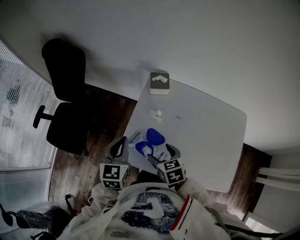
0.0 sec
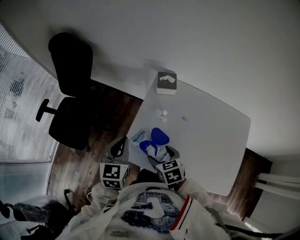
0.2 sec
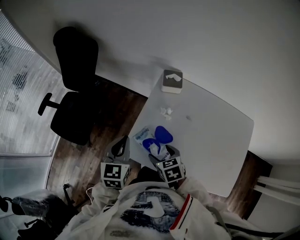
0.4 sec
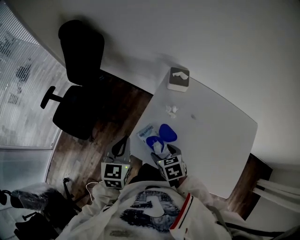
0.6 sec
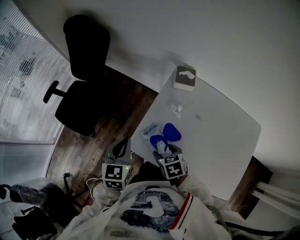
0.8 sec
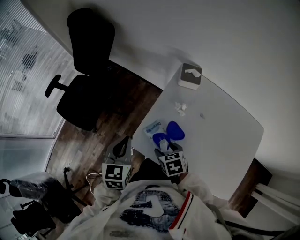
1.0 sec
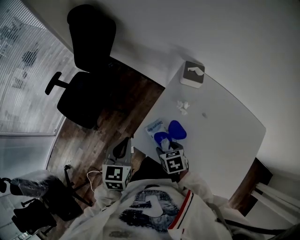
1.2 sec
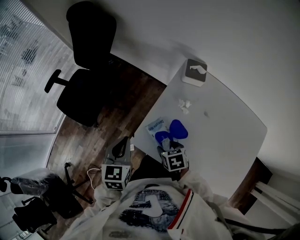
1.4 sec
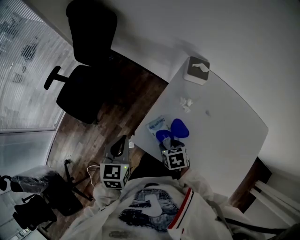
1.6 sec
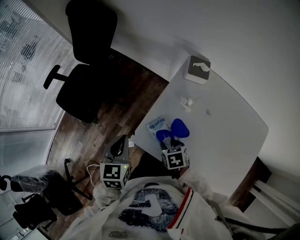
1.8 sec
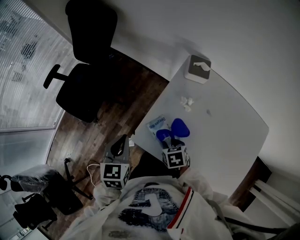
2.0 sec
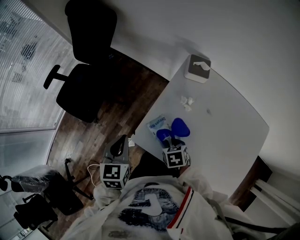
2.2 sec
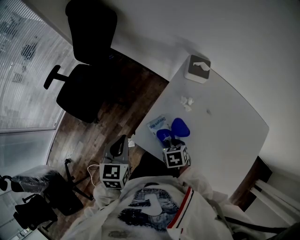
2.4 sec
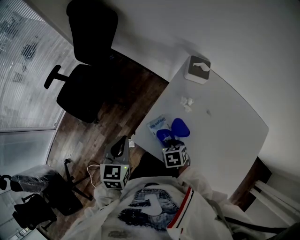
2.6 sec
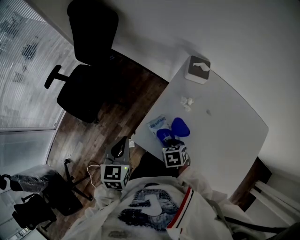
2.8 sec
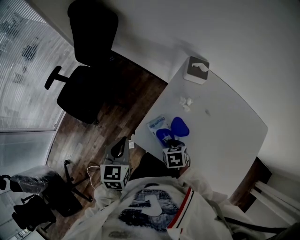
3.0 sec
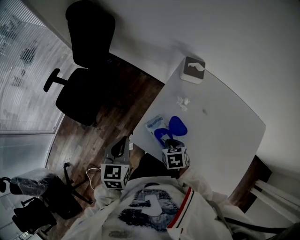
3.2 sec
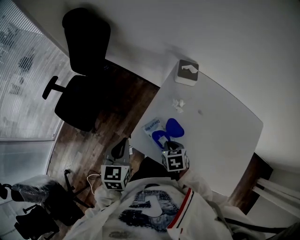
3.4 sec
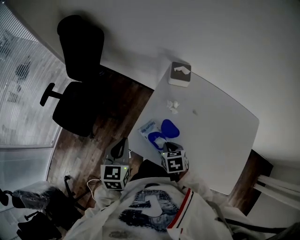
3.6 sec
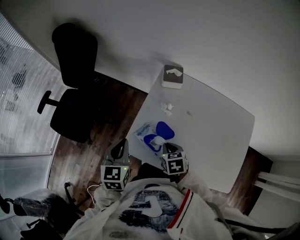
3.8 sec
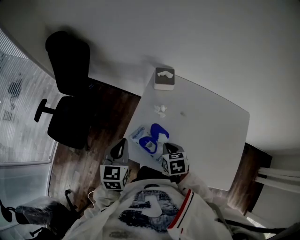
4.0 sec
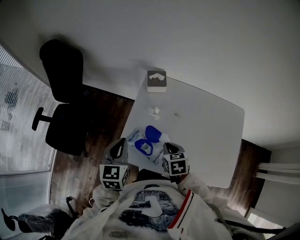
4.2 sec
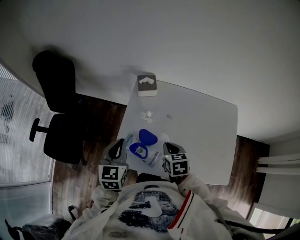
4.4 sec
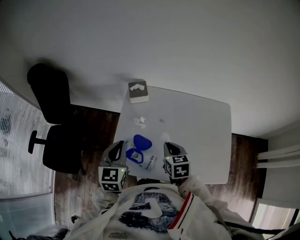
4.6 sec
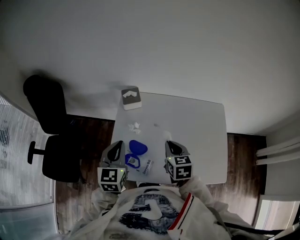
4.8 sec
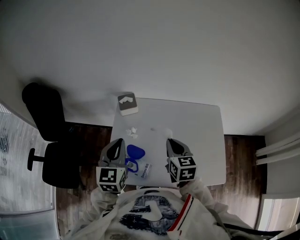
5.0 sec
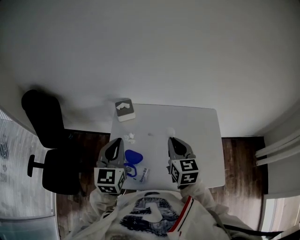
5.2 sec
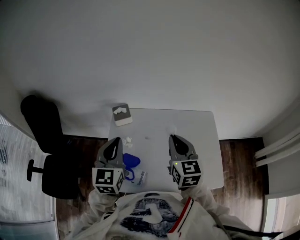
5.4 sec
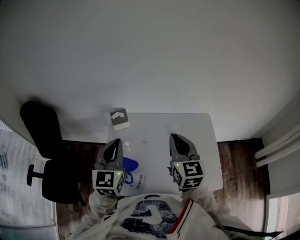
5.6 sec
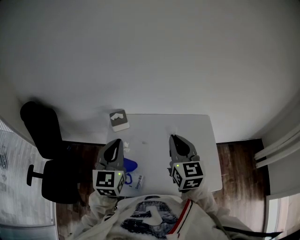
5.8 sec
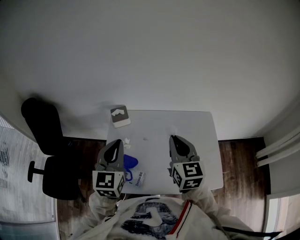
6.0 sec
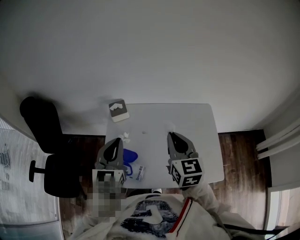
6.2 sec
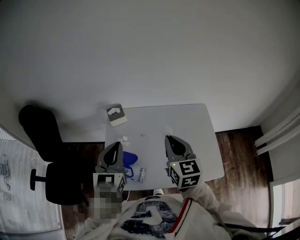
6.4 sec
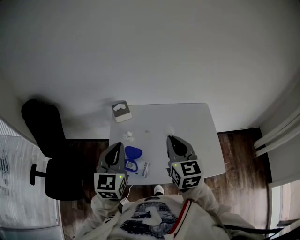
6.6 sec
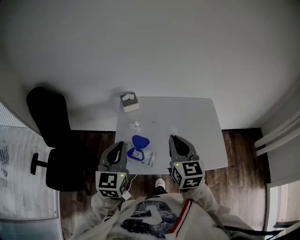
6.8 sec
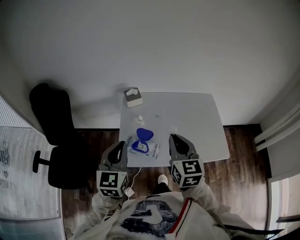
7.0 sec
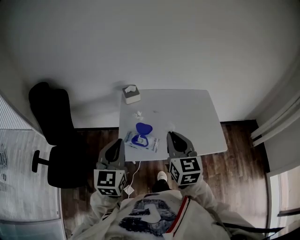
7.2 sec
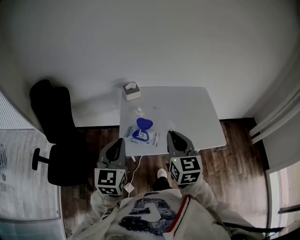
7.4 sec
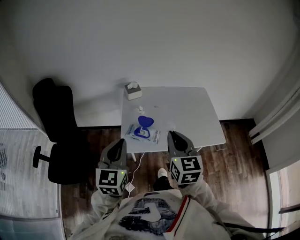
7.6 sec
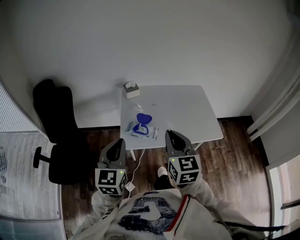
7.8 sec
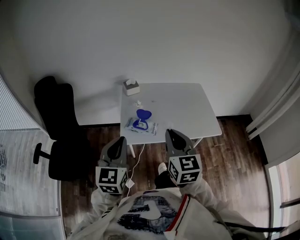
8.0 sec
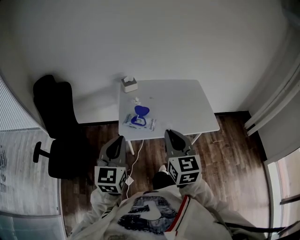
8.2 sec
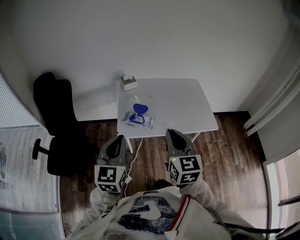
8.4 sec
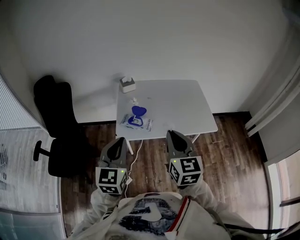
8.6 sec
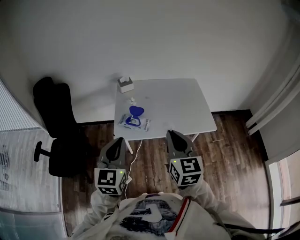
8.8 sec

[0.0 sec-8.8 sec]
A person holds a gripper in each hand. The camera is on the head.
0.0 sec to 1.4 sec: The left gripper travels to the left by approximately 10 cm. The right gripper goes some 10 cm downward and to the left, and rotates roughly 20 degrees.
1.4 sec to 3.0 sec: The right gripper closes its fingers.
3.0 sec to 4.4 sec: The left gripper shifts by some 15 cm, and swivels some 20 degrees. The right gripper moves approximately 15 cm, and rotates roughly 30 degrees.
4.4 sec to 5.8 sec: The right gripper heads upward and to the right, covering some 25 cm, and angles its fingers upward, by roughly 40 degrees. Meanwhile the left gripper goes about 20 cm upward, to the right and forward, and swivels about 20 degrees.
5.8 sec to 7.4 sec: The grippers both shift backward and to the left by roughly 30 cm.
7.4 sec to 8.8 sec: The grippers both shift backward and to the right by roughly 15 cm.

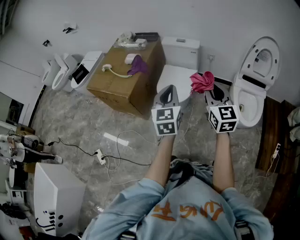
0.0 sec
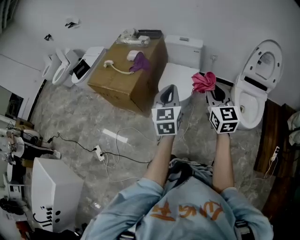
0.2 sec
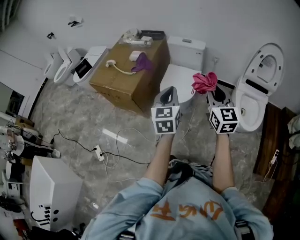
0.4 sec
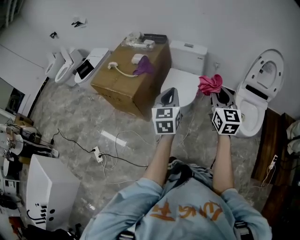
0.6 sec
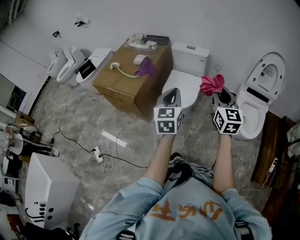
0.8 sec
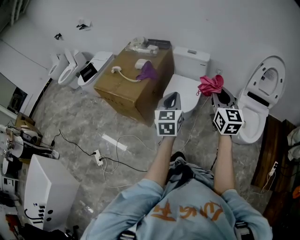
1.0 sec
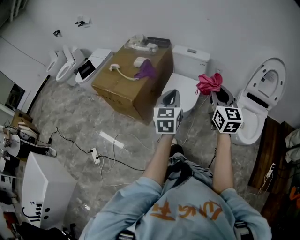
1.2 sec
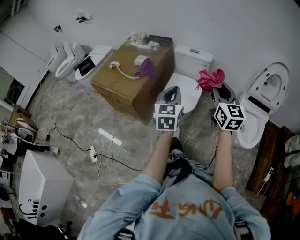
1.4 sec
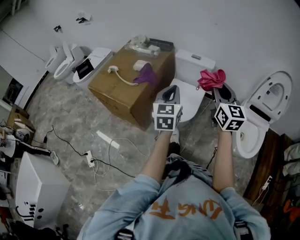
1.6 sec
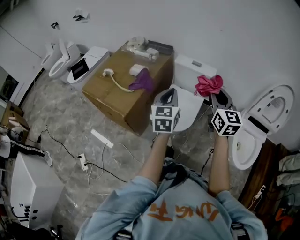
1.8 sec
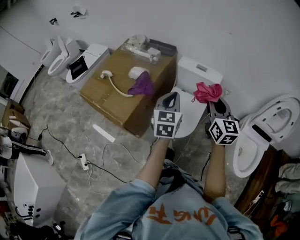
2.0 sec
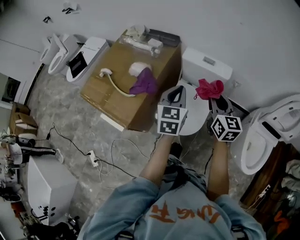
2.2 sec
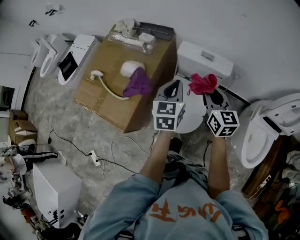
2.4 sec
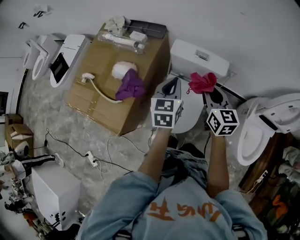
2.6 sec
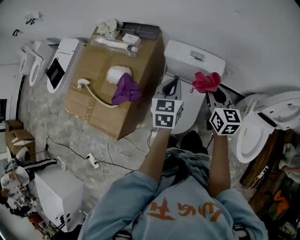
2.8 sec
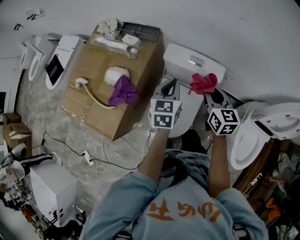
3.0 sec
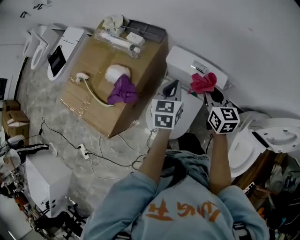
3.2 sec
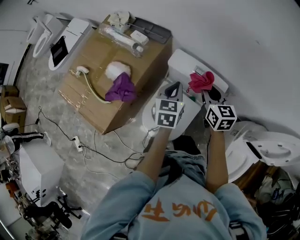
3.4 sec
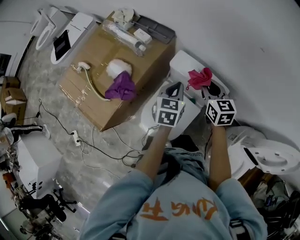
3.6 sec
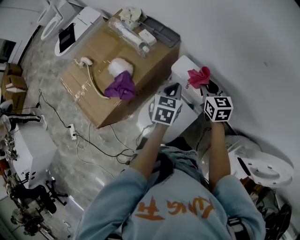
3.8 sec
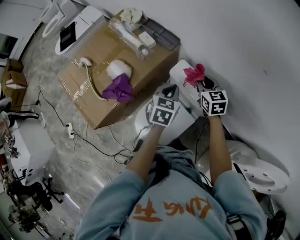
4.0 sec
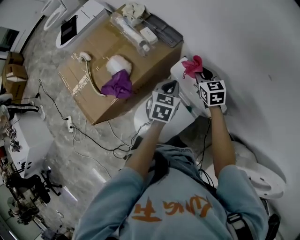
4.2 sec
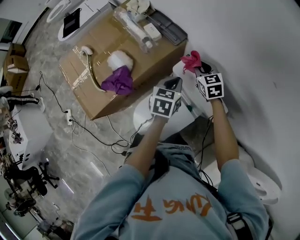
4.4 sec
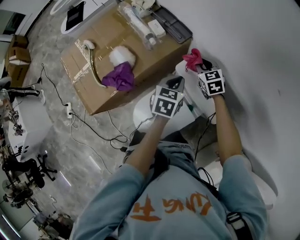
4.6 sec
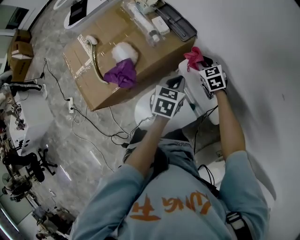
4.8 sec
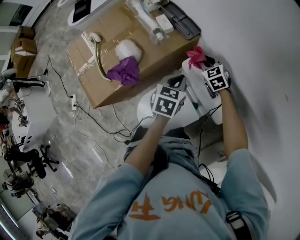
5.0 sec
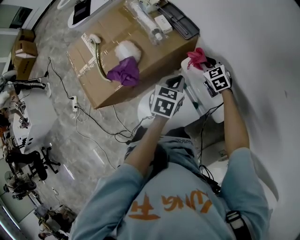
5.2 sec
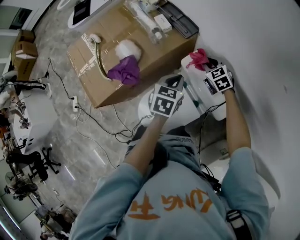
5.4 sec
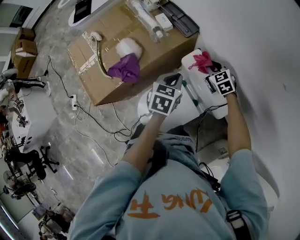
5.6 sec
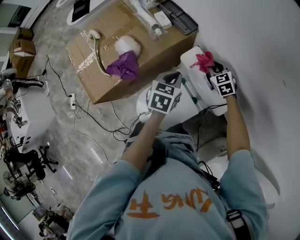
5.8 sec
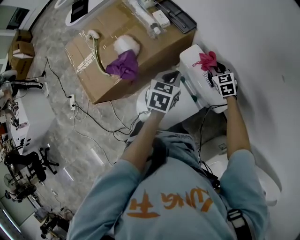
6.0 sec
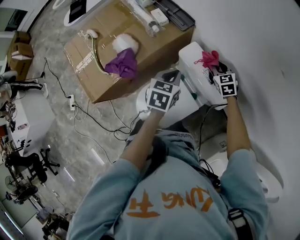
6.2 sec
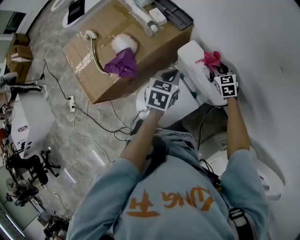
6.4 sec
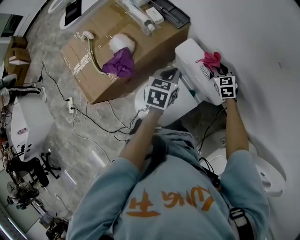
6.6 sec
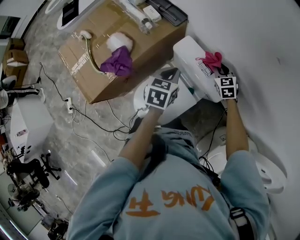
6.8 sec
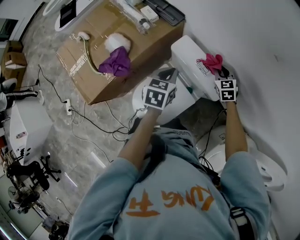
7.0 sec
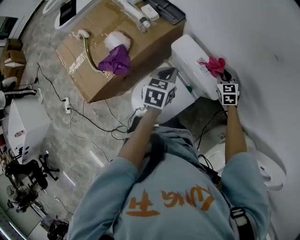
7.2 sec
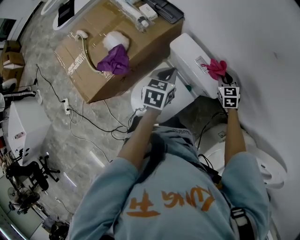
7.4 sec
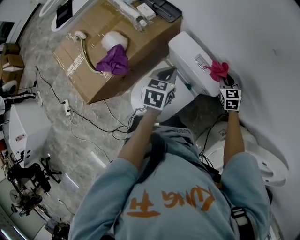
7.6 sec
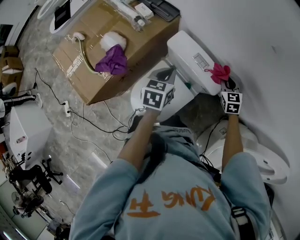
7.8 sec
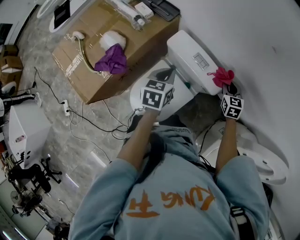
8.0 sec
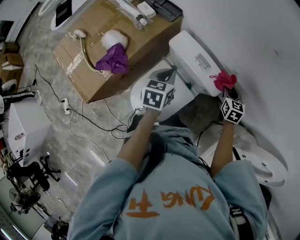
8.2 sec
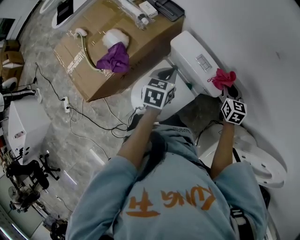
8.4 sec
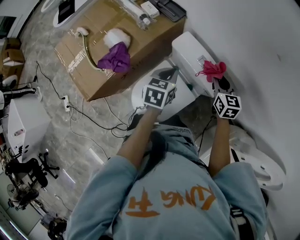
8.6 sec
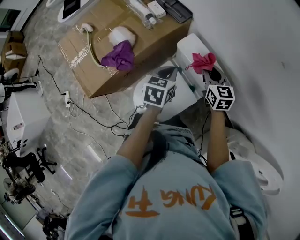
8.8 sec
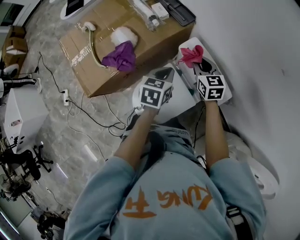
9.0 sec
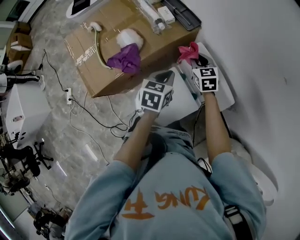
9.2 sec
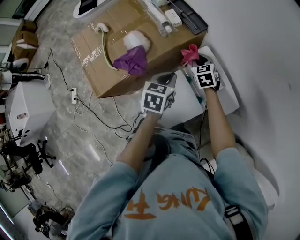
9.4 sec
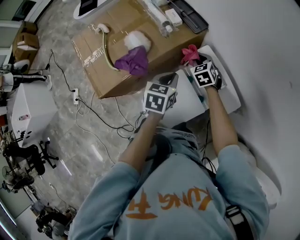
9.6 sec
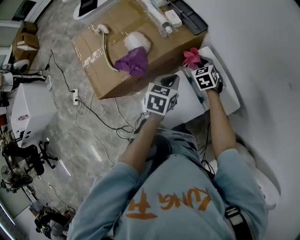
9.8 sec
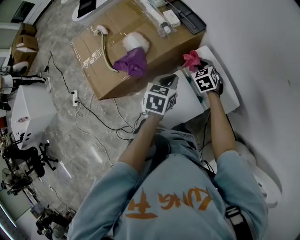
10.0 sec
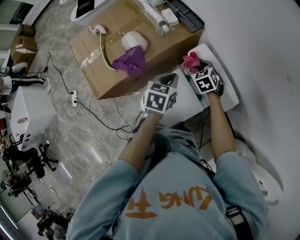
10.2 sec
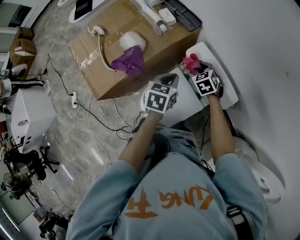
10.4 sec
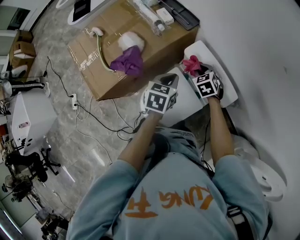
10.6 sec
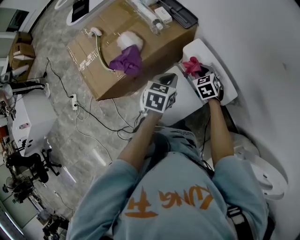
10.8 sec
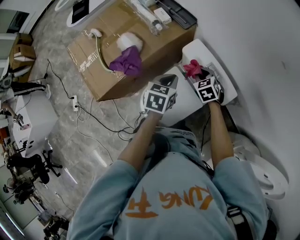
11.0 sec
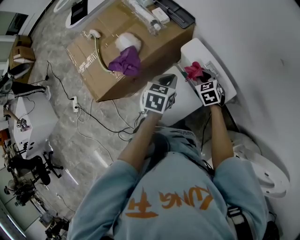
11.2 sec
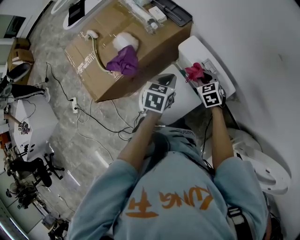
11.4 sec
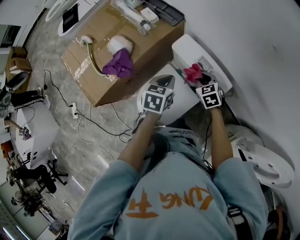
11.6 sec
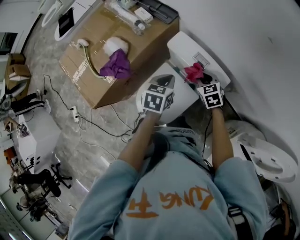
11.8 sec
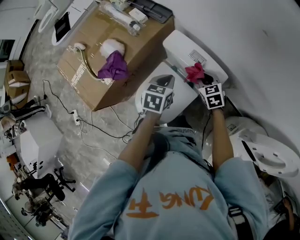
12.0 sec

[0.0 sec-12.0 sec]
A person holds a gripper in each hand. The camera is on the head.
0.0 sec to 1.6 sec: Both grippers travel together forward, approximately 15 cm.
1.6 sec to 3.0 sec: Both grippers are carried forward, roughly 40 cm. The right gripper moves downward, some 20 cm, and rotates about 30 degrees.
3.0 sec to 4.4 sec: The left gripper moves forward and downward, roughly 15 cm, and rotates about 20 degrees. Meanwhile the right gripper heads forward and downward, covering some 30 cm, and turns by about 40 degrees.
4.4 sec to 6.0 sec: The right gripper travels downward and to the right by about 10 cm.
6.0 sec to 7.6 sec: The right gripper is displaced to the right and backward by about 15 cm.
7.6 sec to 9.0 sec: The right gripper goes roughly 20 cm to the left, and turns by approximately 20 degrees. Meanwhile the left gripper moves approximately 5 cm.
9.0 sec to 10.4 sec: The right gripper heads downward, covering some 10 cm, and swivels approximately 30 degrees.
10.4 sec to 12.0 sec: The left gripper heads to the right, covering roughly 5 cm. The right gripper travels to the right and backward by about 15 cm.

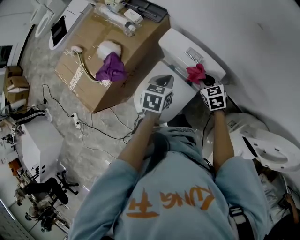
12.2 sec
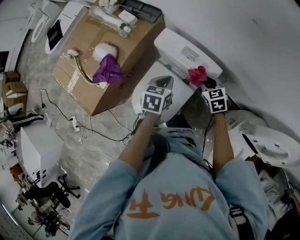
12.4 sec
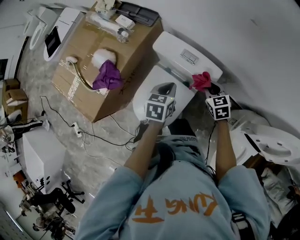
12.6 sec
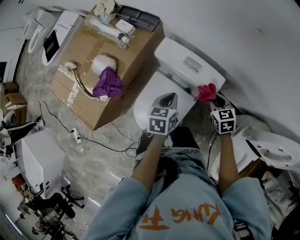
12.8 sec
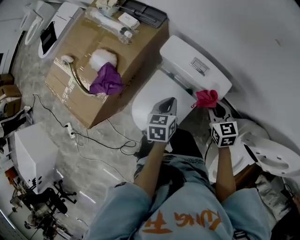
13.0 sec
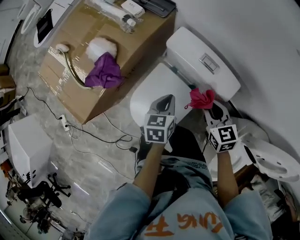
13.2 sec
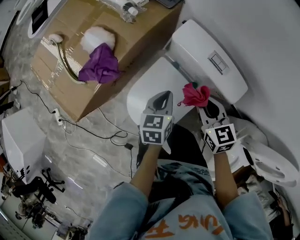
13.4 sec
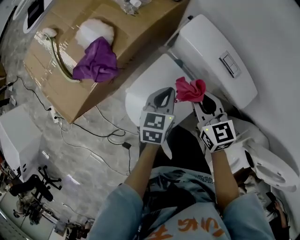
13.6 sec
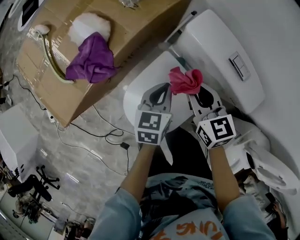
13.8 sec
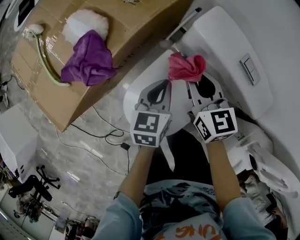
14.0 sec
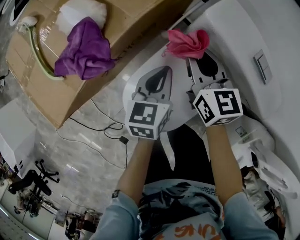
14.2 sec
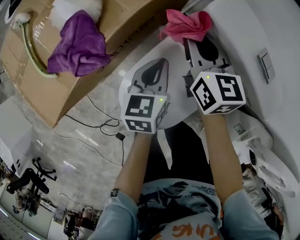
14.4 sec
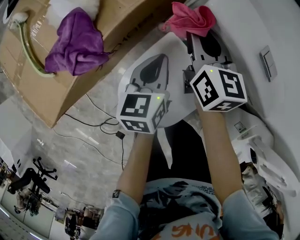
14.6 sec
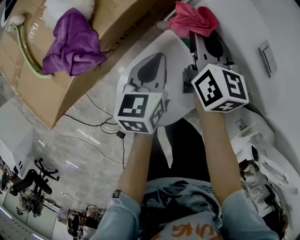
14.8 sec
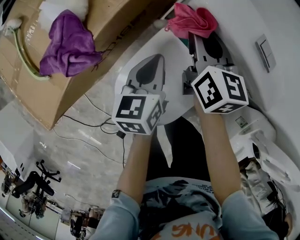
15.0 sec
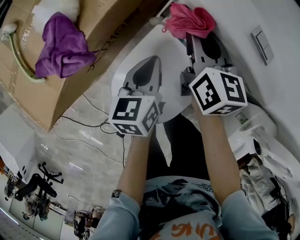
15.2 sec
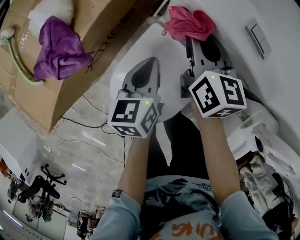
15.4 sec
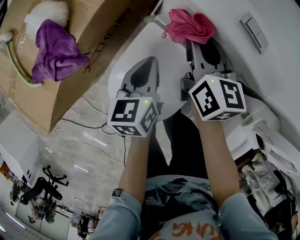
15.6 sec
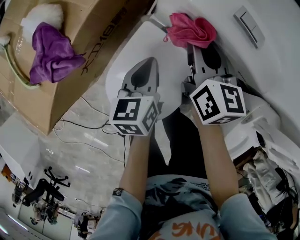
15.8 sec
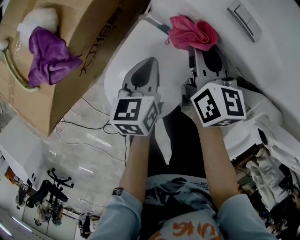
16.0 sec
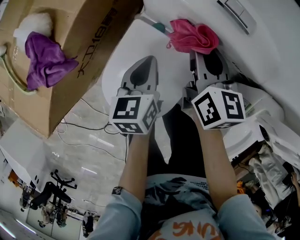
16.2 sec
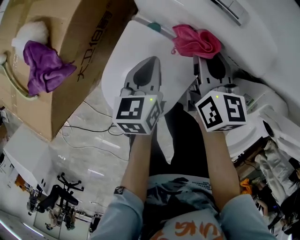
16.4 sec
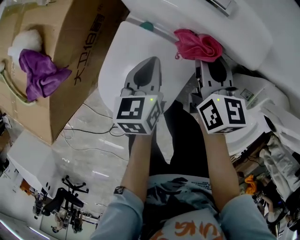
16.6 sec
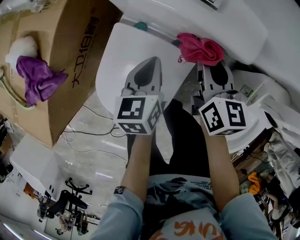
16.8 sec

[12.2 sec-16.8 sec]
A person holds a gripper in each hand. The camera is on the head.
12.2 sec to 13.8 sec: The left gripper moves downward and to the left, some 20 cm. Meanwhile the right gripper shifts about 15 cm to the left.
13.8 sec to 15.2 sec: The left gripper ends up roughly 5 cm from where it was, while the right gripper heads forward, covering roughly 10 cm, and turns by about 30 degrees.
15.2 sec to 16.8 sec: The left gripper shifts roughly 15 cm to the right; the right gripper is displaced to the right and backward by some 20 cm.
